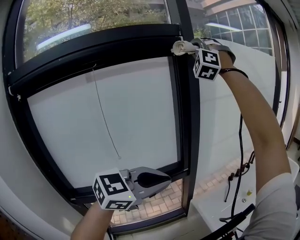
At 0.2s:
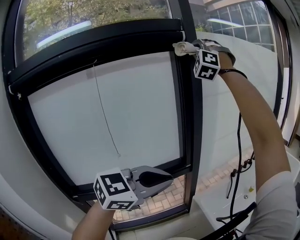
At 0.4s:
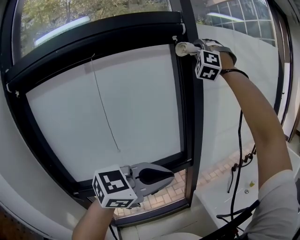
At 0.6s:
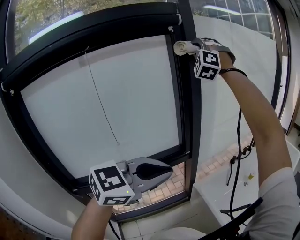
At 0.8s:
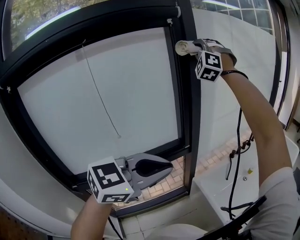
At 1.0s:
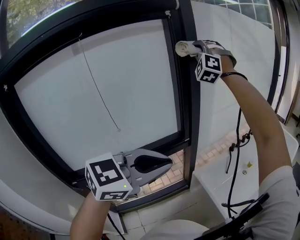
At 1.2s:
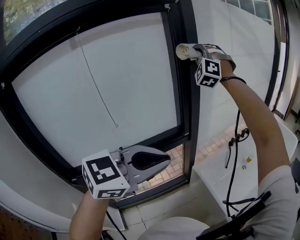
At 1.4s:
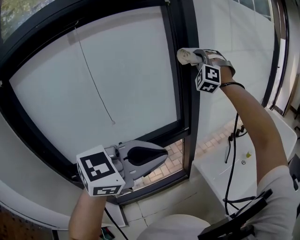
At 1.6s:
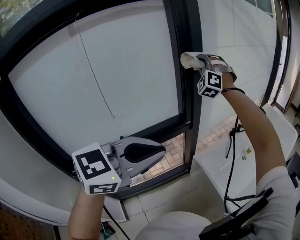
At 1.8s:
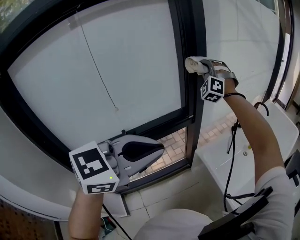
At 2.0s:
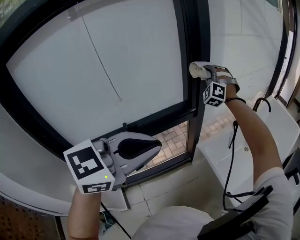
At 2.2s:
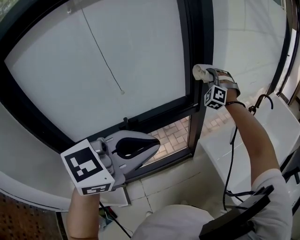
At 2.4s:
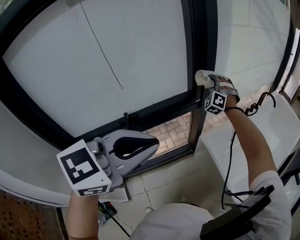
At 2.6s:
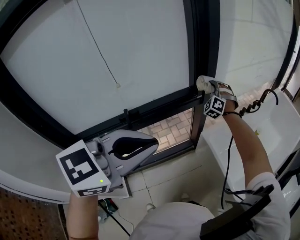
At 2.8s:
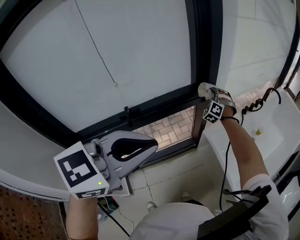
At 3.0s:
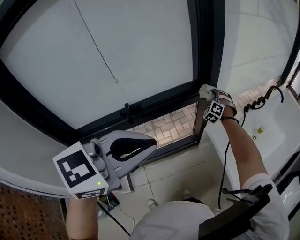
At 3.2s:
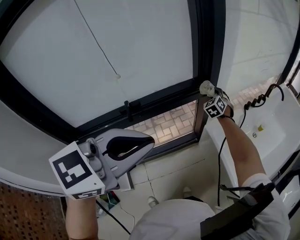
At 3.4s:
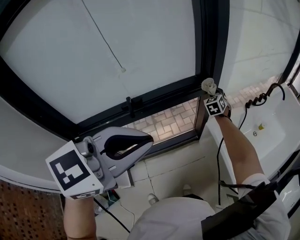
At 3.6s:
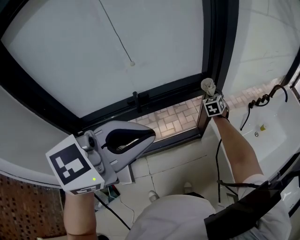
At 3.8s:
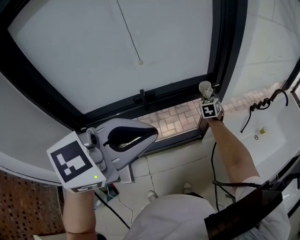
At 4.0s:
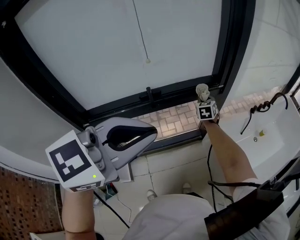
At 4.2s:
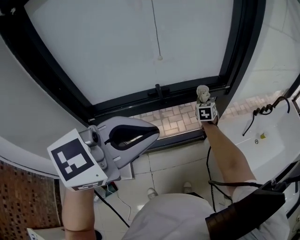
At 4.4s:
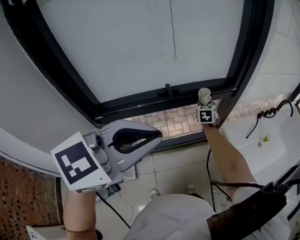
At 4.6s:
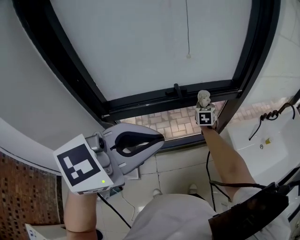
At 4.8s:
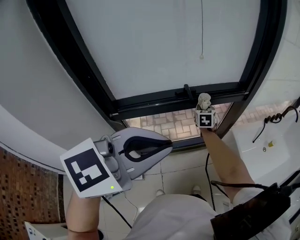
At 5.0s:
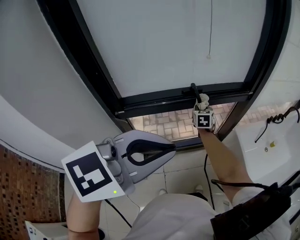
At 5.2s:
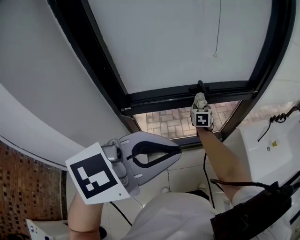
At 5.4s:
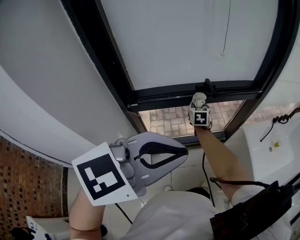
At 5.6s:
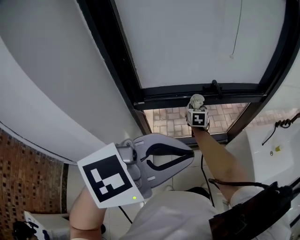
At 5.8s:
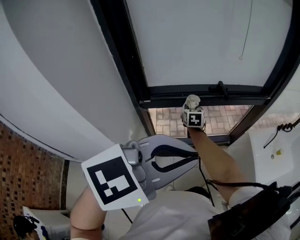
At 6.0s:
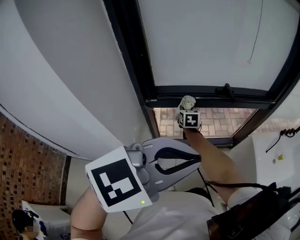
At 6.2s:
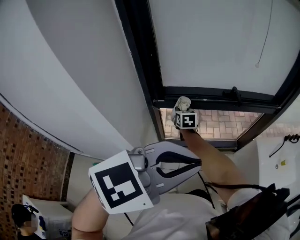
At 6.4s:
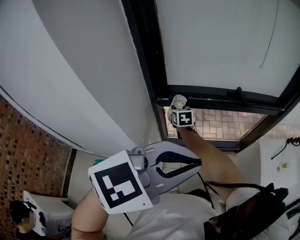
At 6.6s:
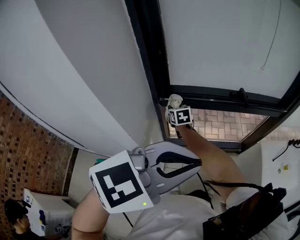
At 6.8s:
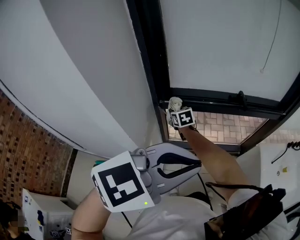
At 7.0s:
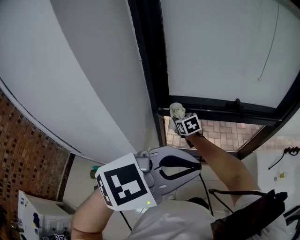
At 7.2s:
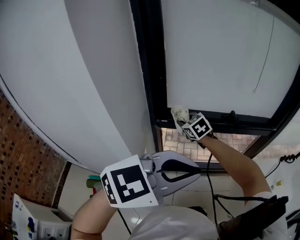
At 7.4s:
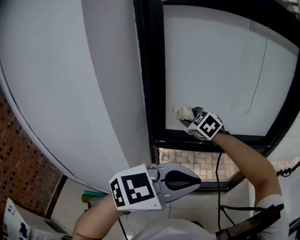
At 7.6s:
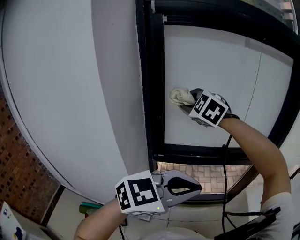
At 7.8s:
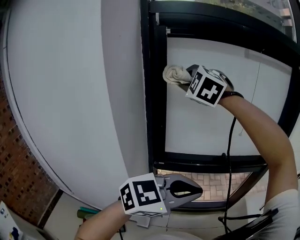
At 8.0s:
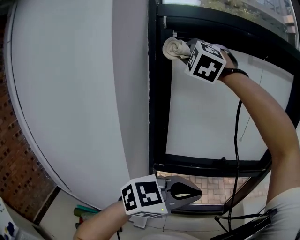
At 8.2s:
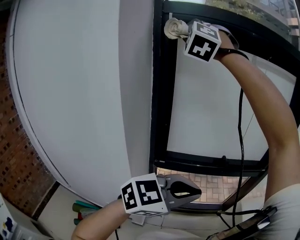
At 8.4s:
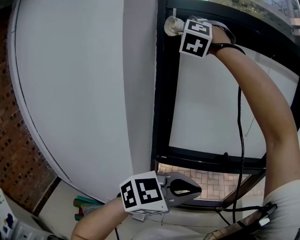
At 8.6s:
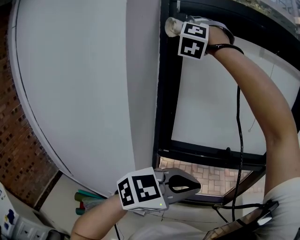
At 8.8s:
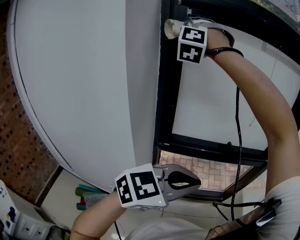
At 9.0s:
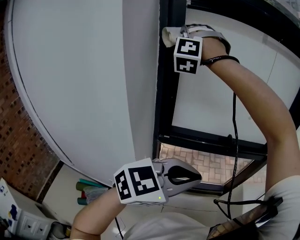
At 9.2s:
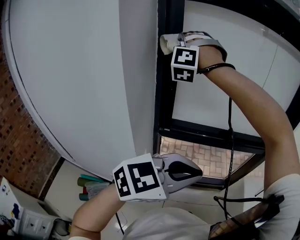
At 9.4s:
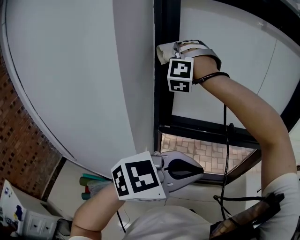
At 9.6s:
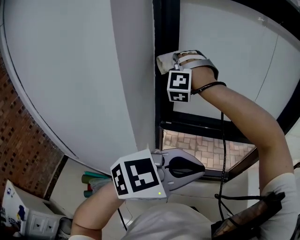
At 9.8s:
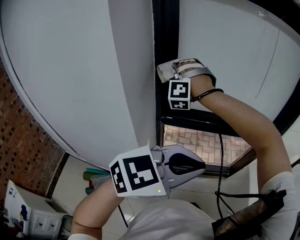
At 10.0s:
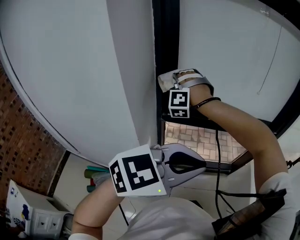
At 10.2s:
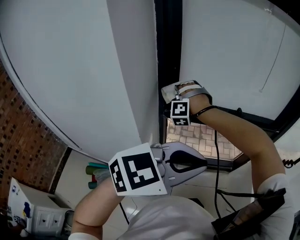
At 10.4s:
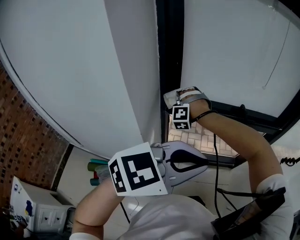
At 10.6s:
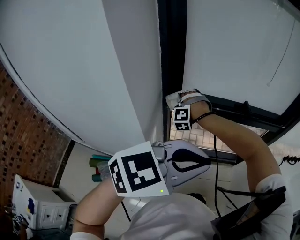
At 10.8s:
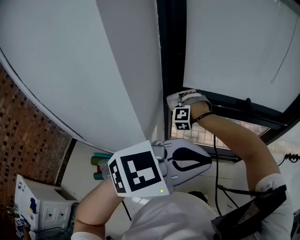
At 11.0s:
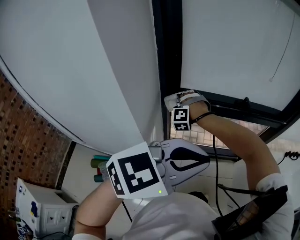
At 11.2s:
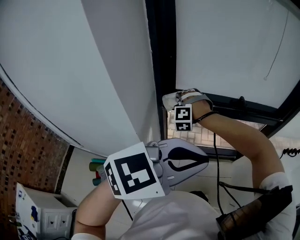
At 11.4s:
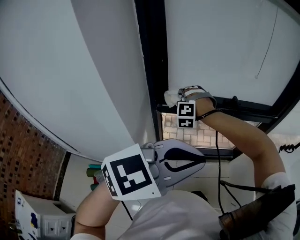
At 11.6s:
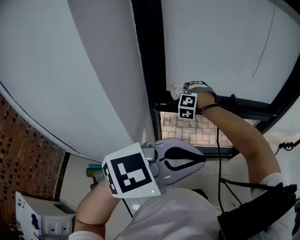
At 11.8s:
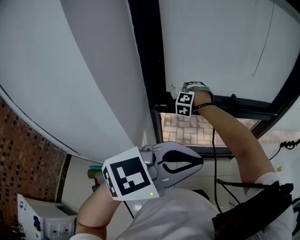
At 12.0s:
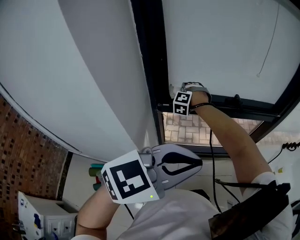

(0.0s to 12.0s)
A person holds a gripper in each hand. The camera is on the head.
0.0s - 1.6s: The right gripper travels downward by approximately 30 cm.
1.6s - 3.0s: The right gripper heads downward, covering about 40 cm, and swivels roughly 30 degrees, while the left gripper shifts by roughly 5 cm.
3.0s - 4.4s: The right gripper shifts roughly 25 cm backward and to the left, and twists roughly 50 degrees clockwise, seen from behind, while the left gripper heads backward and to the left, covering approximately 15 cm.
4.4s - 6.0s: The right gripper travels to the left and backward by roughly 40 cm, and swivels approximately 20 degrees. Meanwhile the left gripper moves backward and to the left, roughly 15 cm.
6.0s - 7.6s: The right gripper goes about 40 cm upward, and rotates around the line of its fingers by some 70 degrees, counterclockwise from behind.
7.6s - 9.0s: The right gripper travels upward and to the left by some 20 cm, and swivels roughly 60 degrees.
9.0s - 10.4s: The right gripper travels downward by roughly 50 cm, and angles its fingers downward, by approximately 30 degrees.
10.4s - 12.0s: The right gripper heads forward, covering some 10 cm, and rotates approximately 20 degrees.

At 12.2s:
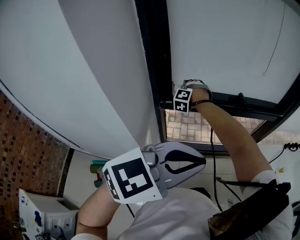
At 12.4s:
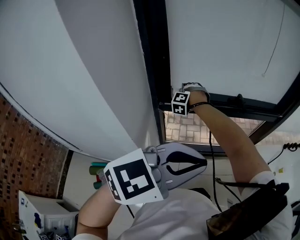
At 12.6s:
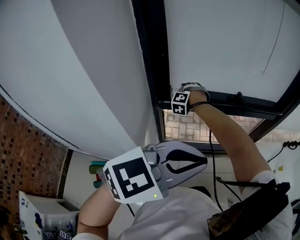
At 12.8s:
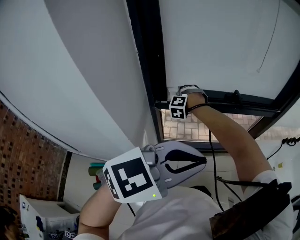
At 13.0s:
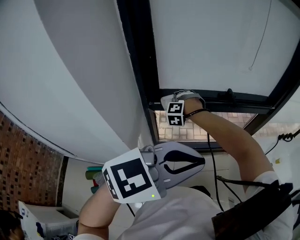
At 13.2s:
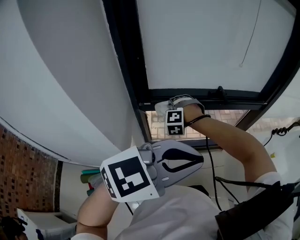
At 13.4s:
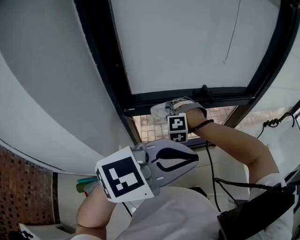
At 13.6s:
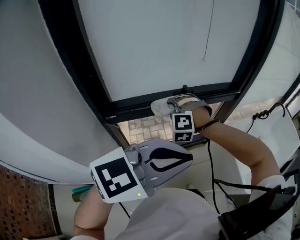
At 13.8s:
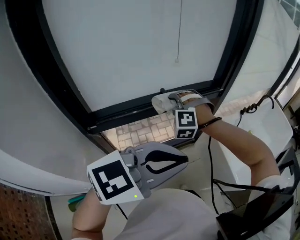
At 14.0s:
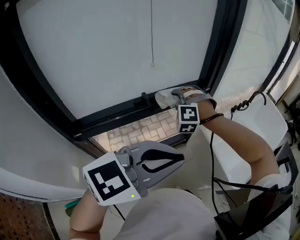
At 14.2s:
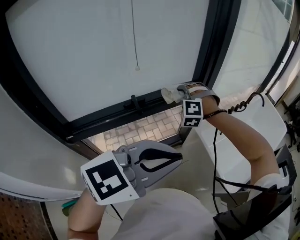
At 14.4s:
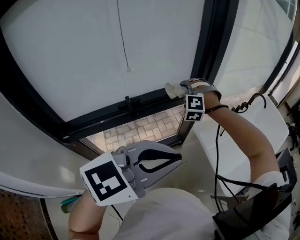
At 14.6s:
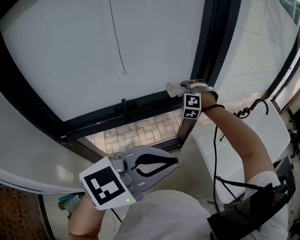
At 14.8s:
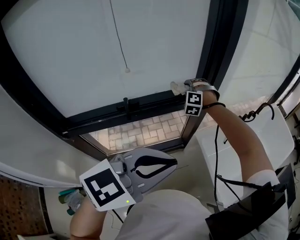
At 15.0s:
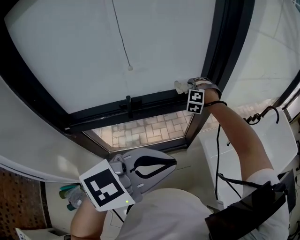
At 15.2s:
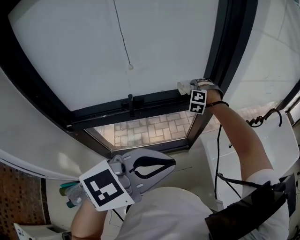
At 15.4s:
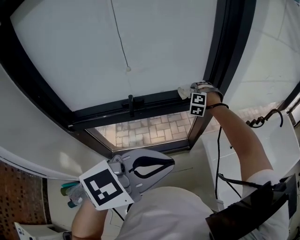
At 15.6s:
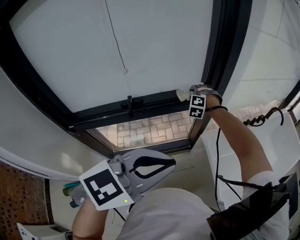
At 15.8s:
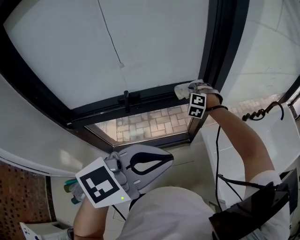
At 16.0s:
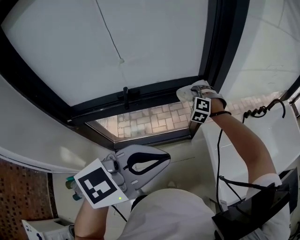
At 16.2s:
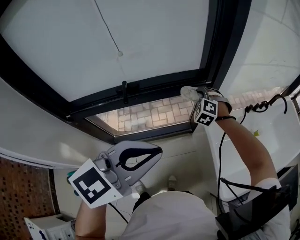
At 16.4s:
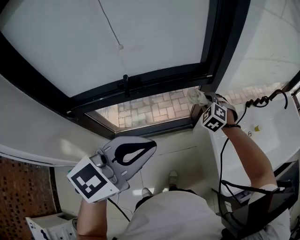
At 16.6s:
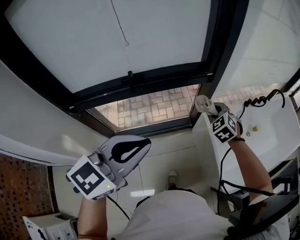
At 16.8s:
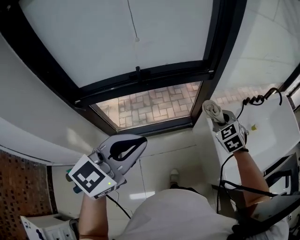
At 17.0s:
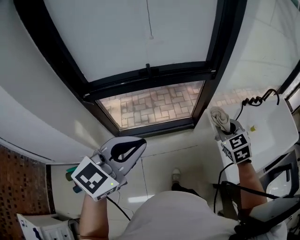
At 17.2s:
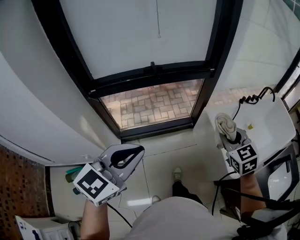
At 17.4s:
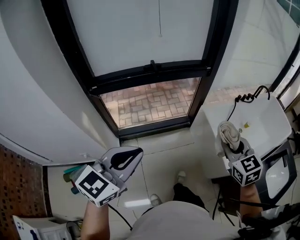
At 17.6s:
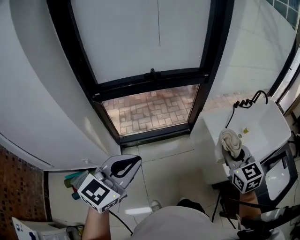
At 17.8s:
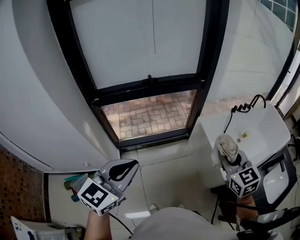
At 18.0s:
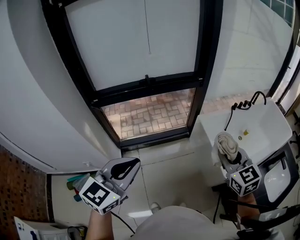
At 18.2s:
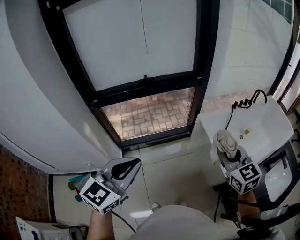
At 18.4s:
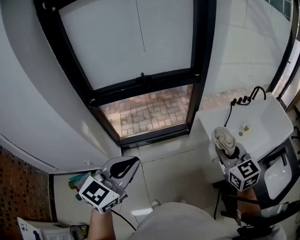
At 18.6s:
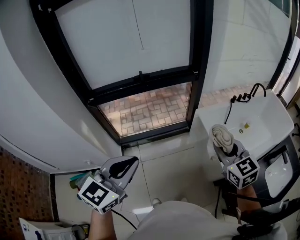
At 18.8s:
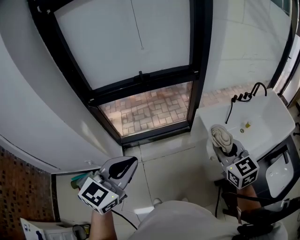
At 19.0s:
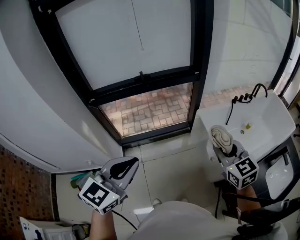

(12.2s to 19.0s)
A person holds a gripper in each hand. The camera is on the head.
12.2s - 13.6s: The right gripper shifts about 25 cm to the right, while the left gripper goes some 10 cm to the right and forward.
13.6s - 15.0s: The right gripper heads forward, covering roughly 40 cm; the left gripper travels forward and to the right by about 25 cm.
15.0s - 16.2s: The right gripper shifts roughly 15 cm backward, to the right and downward, and swivels about 20 degrees.
16.2s - 17.6s: The right gripper moves backward, roughly 50 cm, and twists some 50 degrees clockwise, seen from behind. Meanwhile the left gripper goes about 30 cm backward.
17.6s - 19.0s: The left gripper goes approximately 5 cm to the right.

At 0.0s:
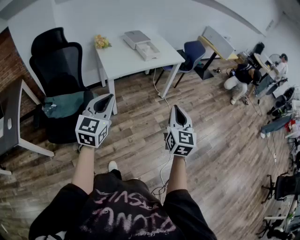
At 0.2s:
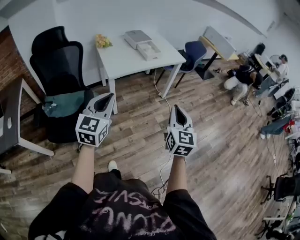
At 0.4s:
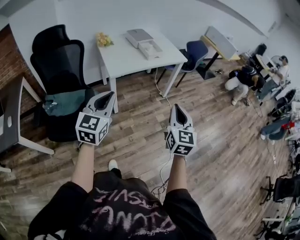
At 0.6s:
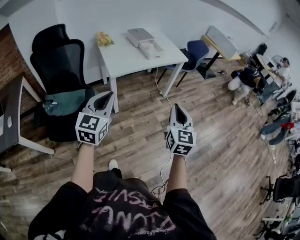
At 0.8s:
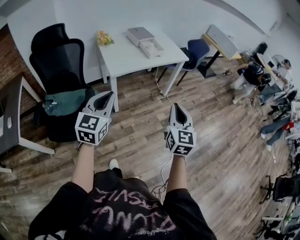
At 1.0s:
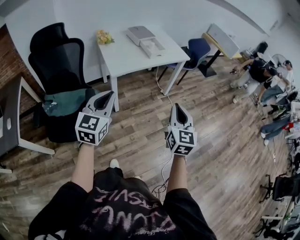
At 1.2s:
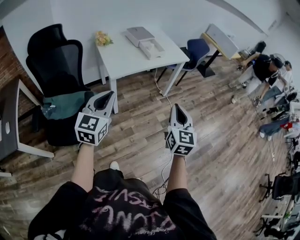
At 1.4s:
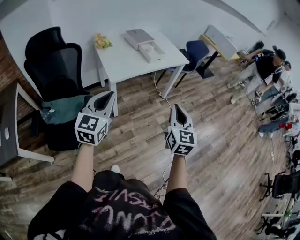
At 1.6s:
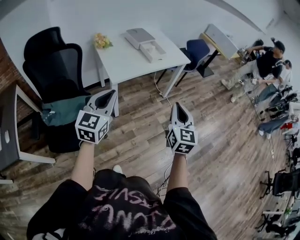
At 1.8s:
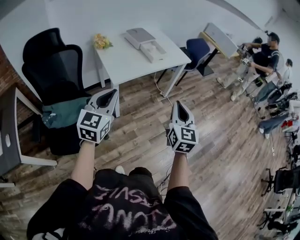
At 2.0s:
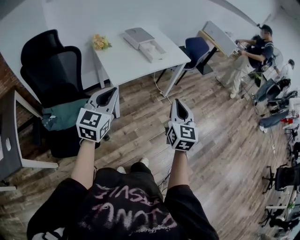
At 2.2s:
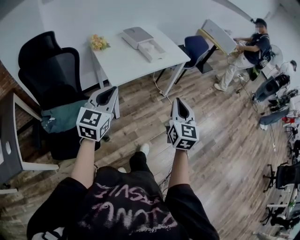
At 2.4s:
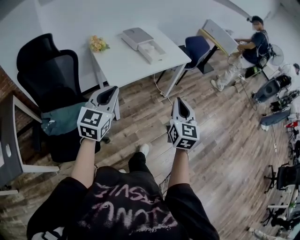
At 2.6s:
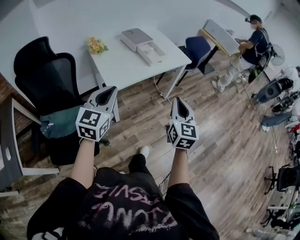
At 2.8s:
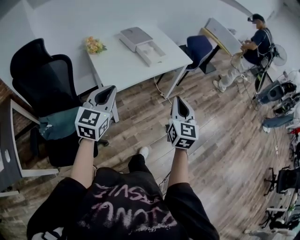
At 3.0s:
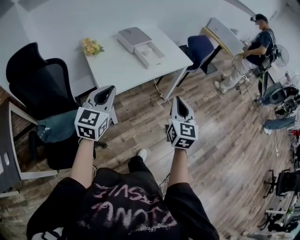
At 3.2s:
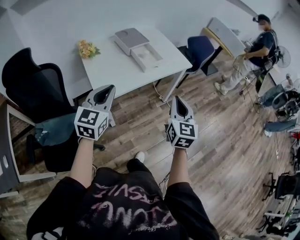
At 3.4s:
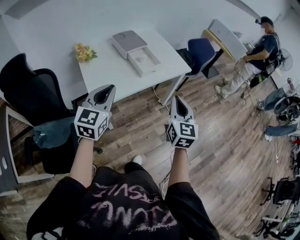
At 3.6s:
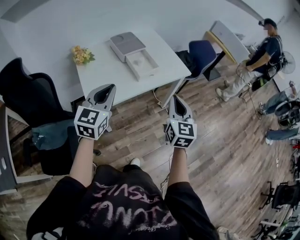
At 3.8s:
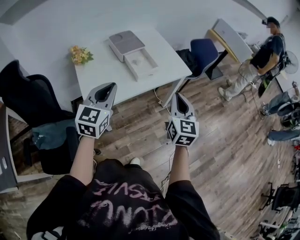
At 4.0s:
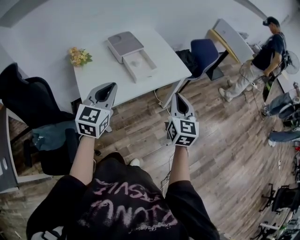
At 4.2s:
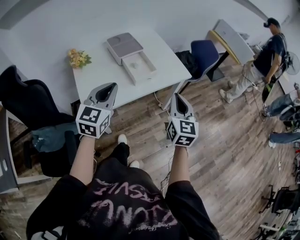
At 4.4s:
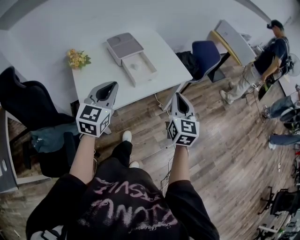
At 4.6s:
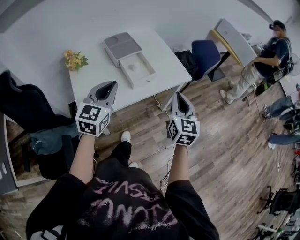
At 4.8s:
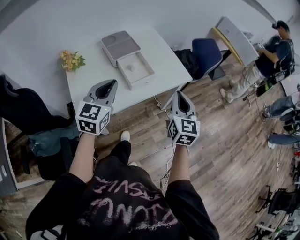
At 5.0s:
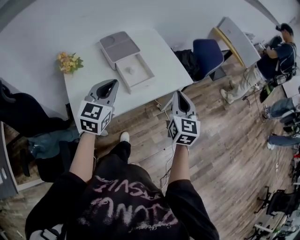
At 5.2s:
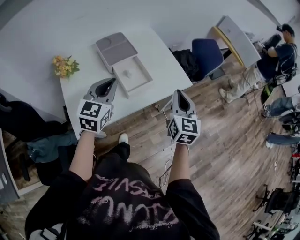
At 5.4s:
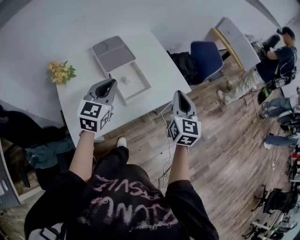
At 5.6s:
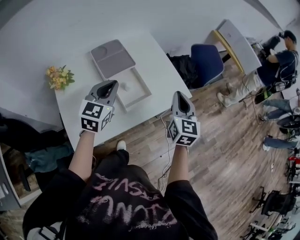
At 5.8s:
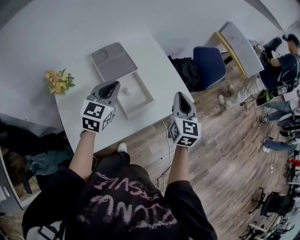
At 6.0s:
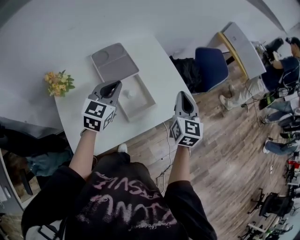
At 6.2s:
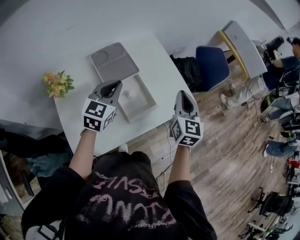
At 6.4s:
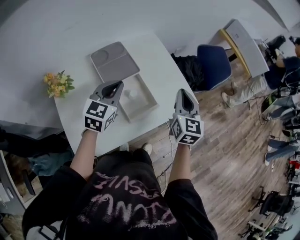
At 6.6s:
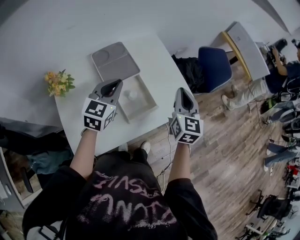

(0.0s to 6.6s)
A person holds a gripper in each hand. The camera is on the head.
0.0s - 1.6s: The two grippers go some 10 cm forward and to the left.
1.6s - 3.2s: The grippers both shift forward by about 25 cm.
3.2s - 5.0s: The two grippers go approximately 25 cm forward.
5.0s - 6.6s: Both grippers travel together forward, roughly 20 cm.
